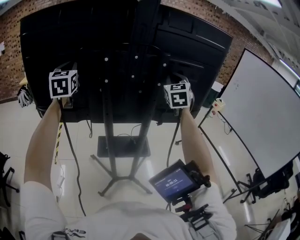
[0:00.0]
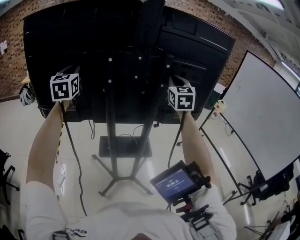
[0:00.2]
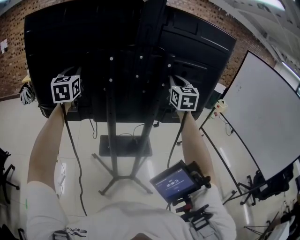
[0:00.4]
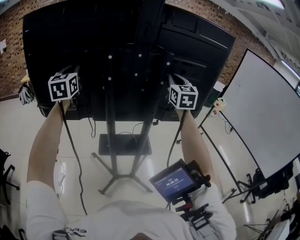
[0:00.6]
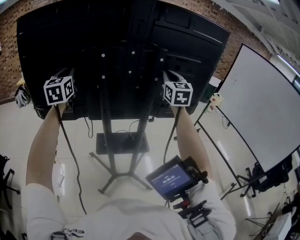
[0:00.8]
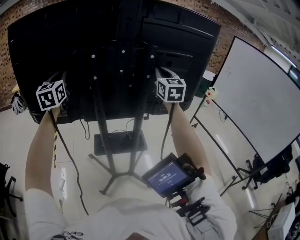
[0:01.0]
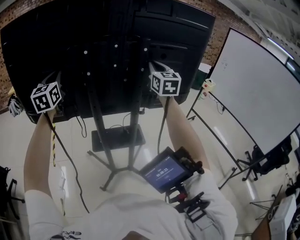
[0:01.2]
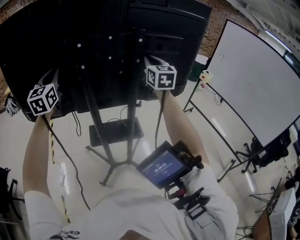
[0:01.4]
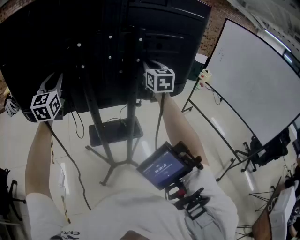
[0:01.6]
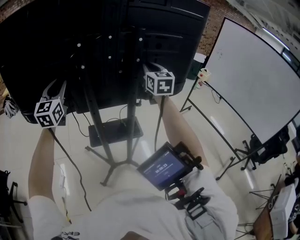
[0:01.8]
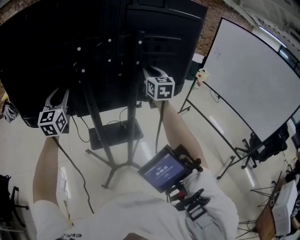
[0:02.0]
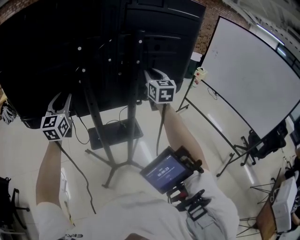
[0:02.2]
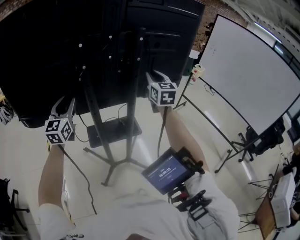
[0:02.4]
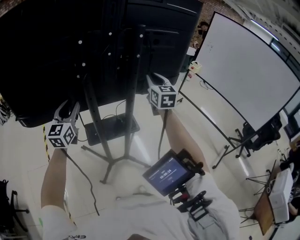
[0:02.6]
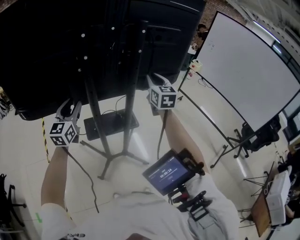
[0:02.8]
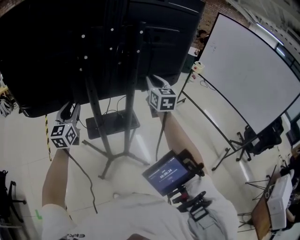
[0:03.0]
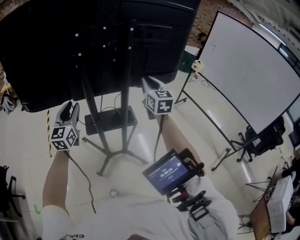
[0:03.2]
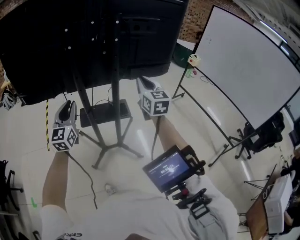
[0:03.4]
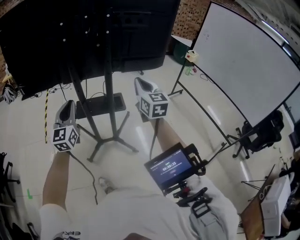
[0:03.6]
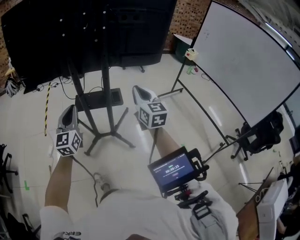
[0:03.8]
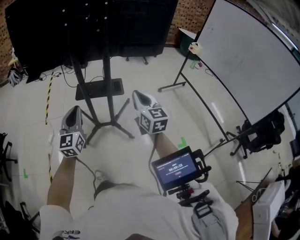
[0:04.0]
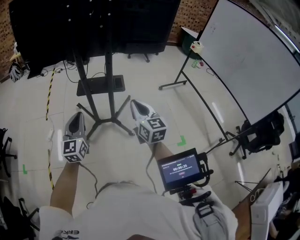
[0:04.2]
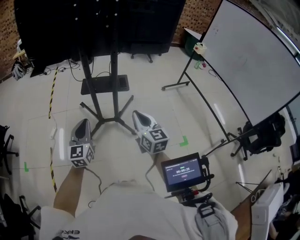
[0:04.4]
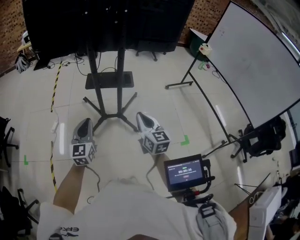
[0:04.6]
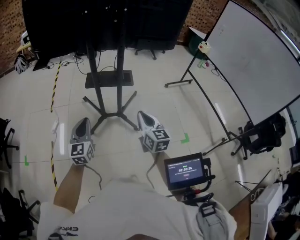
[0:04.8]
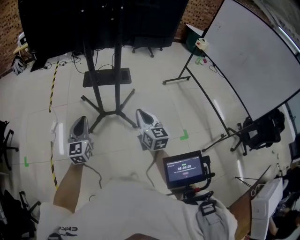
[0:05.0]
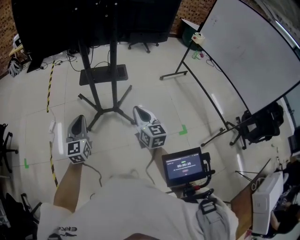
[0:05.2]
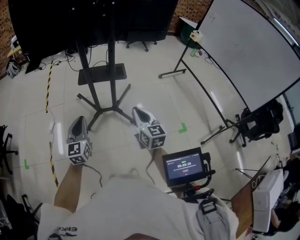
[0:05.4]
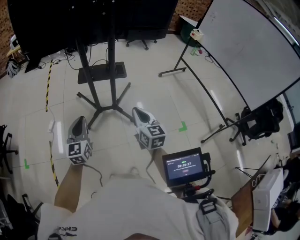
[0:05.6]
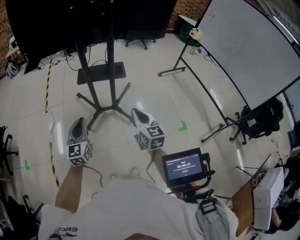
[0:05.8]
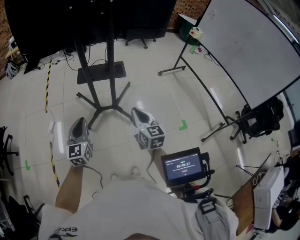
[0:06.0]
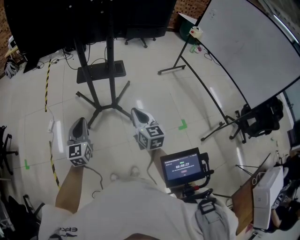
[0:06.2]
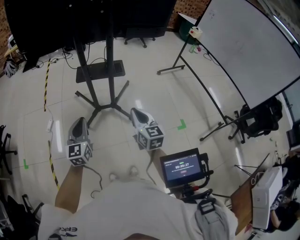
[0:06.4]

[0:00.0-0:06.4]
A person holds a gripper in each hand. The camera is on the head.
0.0 to 1.6 s: The two grippers go roughly 5 cm downward. The right gripper changes its angle by approximately 20 degrees.
1.6 to 3.2 s: The right gripper moves backward and downward, about 15 cm. The left gripper is displaced downward, backward and to the right by roughly 20 cm.
3.2 to 4.8 s: The two grippers go about 40 cm backward and downward. The right gripper rotates approximately 20 degrees; the left gripper closes up.
4.8 to 6.4 s: The grippers move only a little.

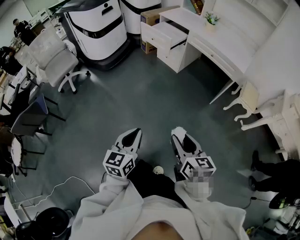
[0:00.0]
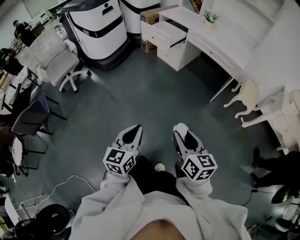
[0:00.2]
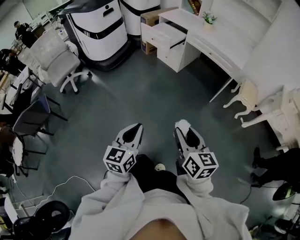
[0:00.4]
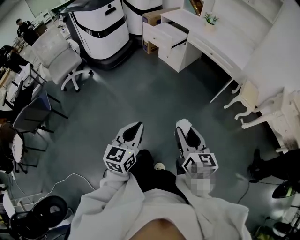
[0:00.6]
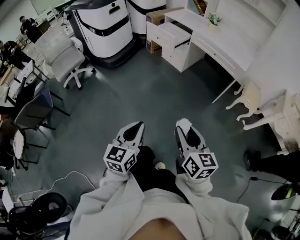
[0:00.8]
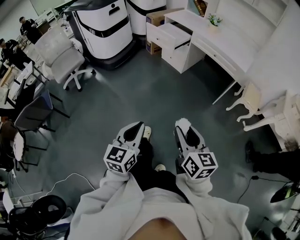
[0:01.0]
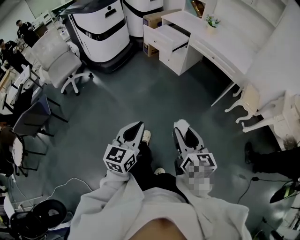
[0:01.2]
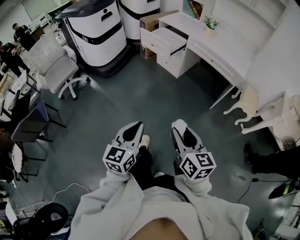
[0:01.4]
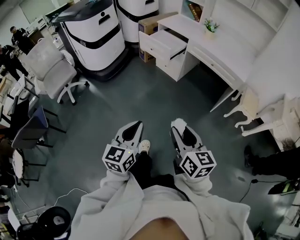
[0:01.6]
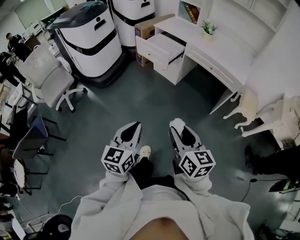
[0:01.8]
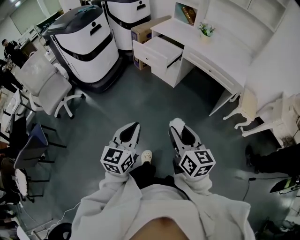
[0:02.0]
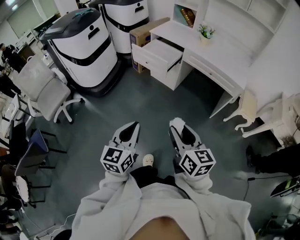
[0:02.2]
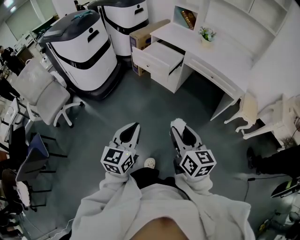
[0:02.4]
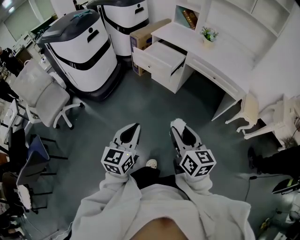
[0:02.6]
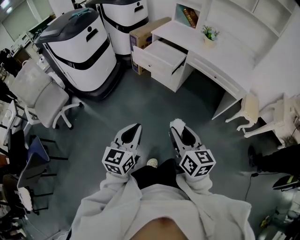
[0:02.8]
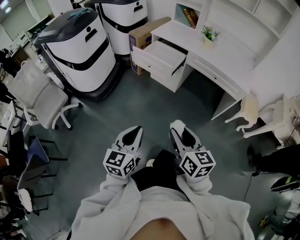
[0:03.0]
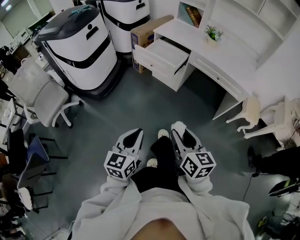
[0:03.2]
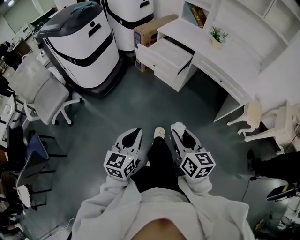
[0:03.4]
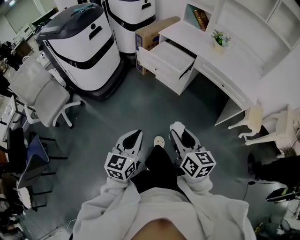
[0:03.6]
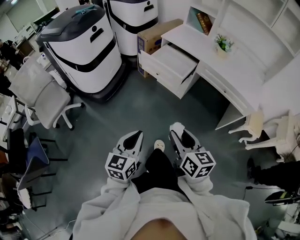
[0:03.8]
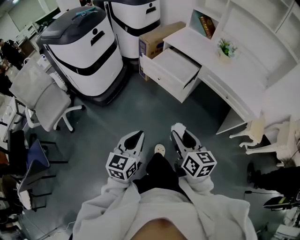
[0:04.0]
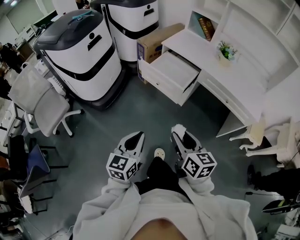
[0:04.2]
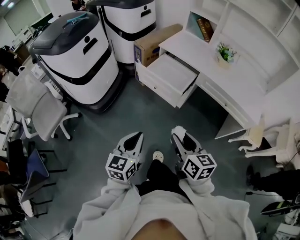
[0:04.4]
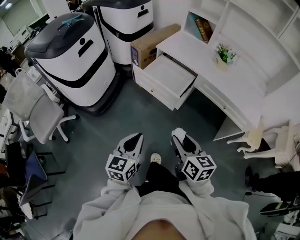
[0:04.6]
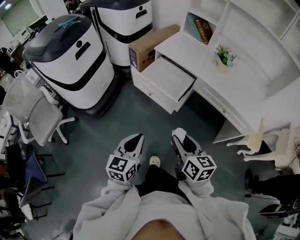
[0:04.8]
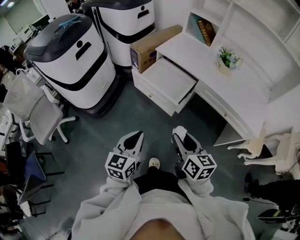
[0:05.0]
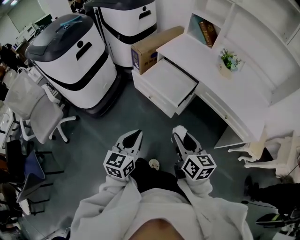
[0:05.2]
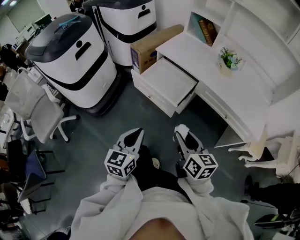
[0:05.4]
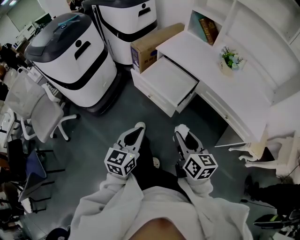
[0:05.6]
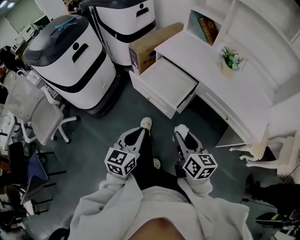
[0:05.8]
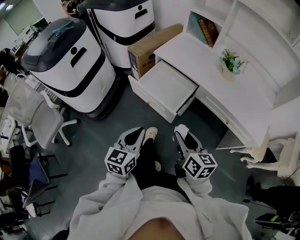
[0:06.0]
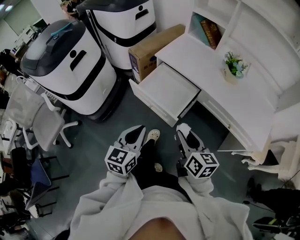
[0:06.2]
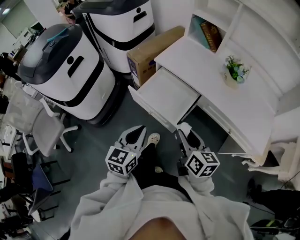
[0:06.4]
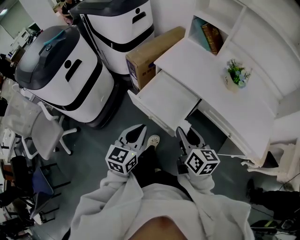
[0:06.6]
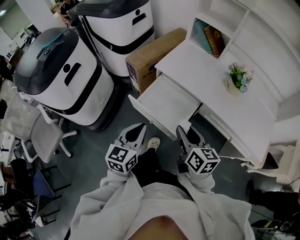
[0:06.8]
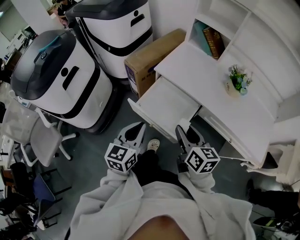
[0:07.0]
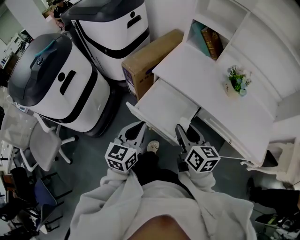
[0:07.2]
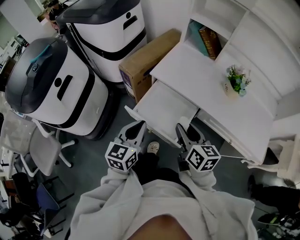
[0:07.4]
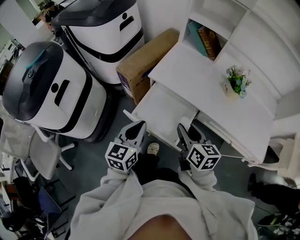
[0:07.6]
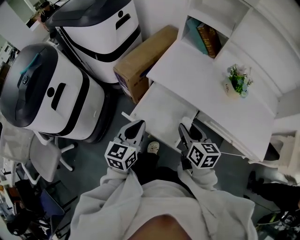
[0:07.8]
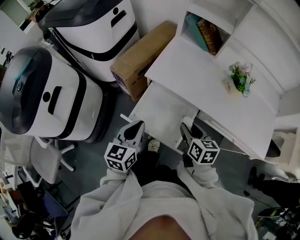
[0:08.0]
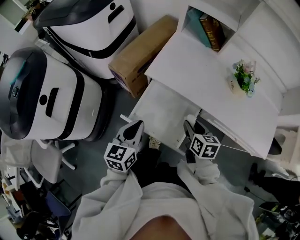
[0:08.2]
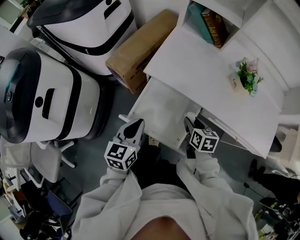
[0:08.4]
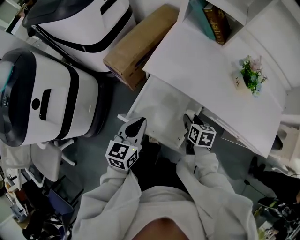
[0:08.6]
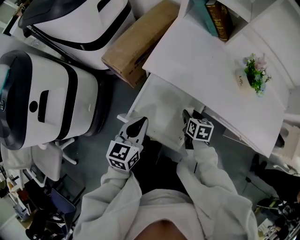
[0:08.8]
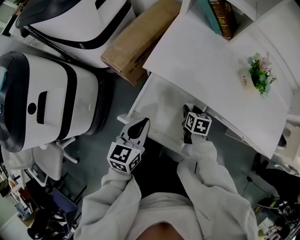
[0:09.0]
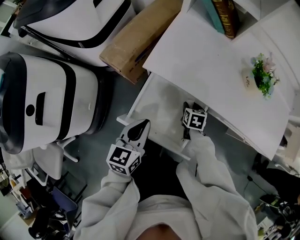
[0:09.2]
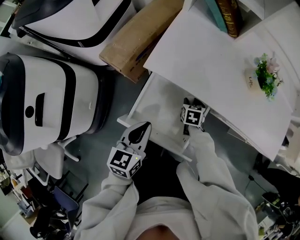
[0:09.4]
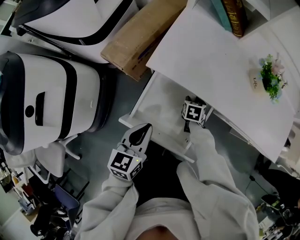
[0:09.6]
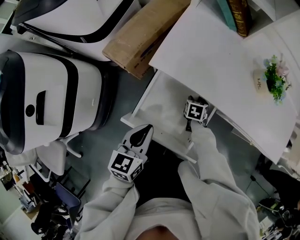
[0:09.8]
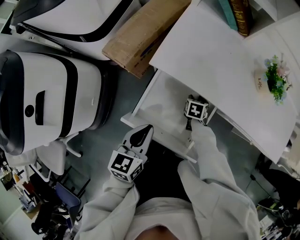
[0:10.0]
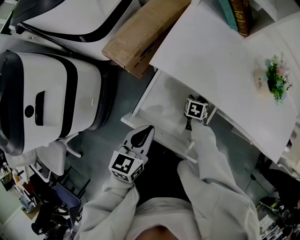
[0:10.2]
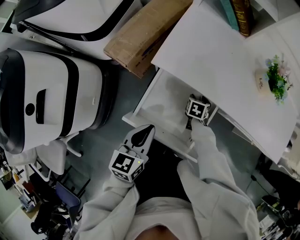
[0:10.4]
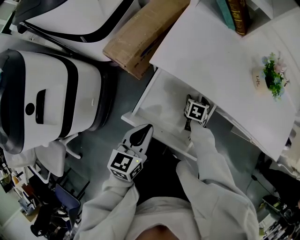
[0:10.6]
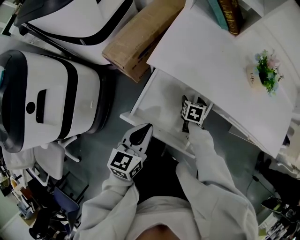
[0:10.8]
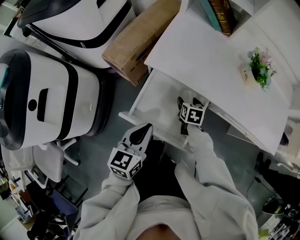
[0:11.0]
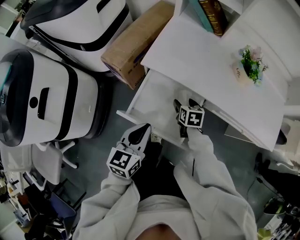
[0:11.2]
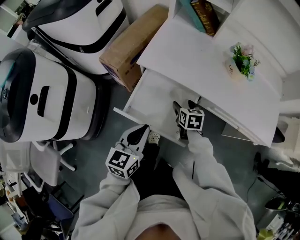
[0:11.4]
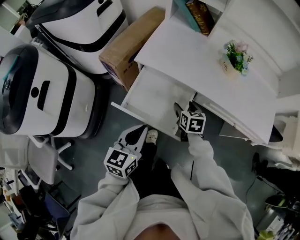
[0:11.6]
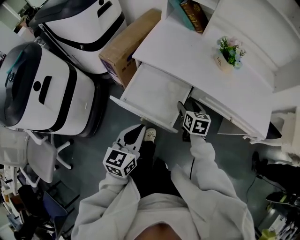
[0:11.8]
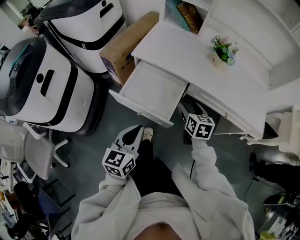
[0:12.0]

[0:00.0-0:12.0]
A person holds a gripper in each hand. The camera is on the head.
0.0 to 1.6 s: The two grippers go about 10 cm forward.
1.6 to 3.0 s: The grippers both shift forward and to the left by roughly 20 cm.
3.0 to 4.4 s: Both grippers travel together forward, about 20 cm.
4.4 to 6.0 s: The right gripper moves forward and to the right, about 15 cm; the left gripper moves forward, roughly 15 cm.
6.0 to 7.6 s: The two grippers go roughly 25 cm forward.
7.6 to 9.0 s: The right gripper travels downward and forward by approximately 30 cm, and tilts its fingers some 30 degrees downward, while the left gripper is displaced downward and forward by about 10 cm.
9.0 to 10.4 s: The right gripper is displaced downward by about 10 cm.
10.4 to 12.0 s: The right gripper moves upward and backward, some 30 cm, and swivels roughly 30 degrees. The left gripper shifts about 20 cm backward, to the right and upward.

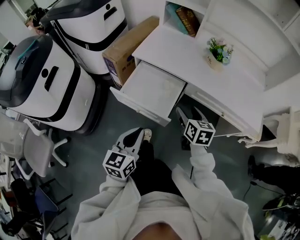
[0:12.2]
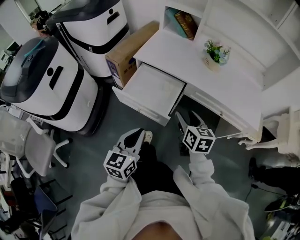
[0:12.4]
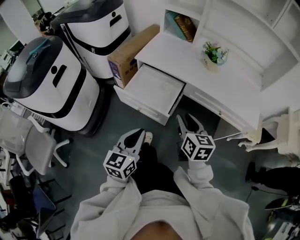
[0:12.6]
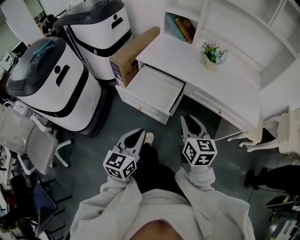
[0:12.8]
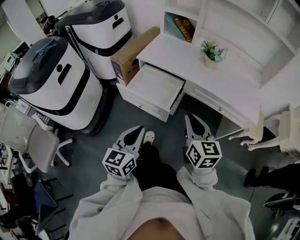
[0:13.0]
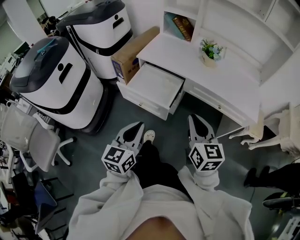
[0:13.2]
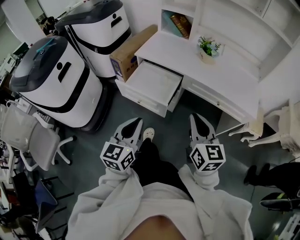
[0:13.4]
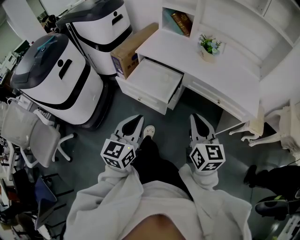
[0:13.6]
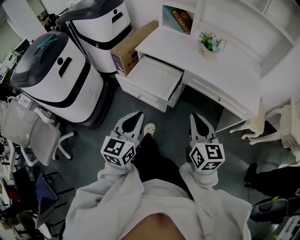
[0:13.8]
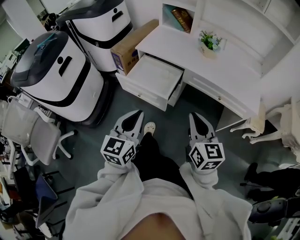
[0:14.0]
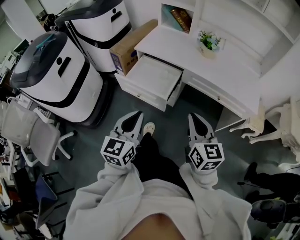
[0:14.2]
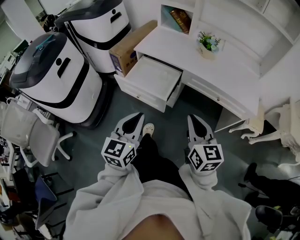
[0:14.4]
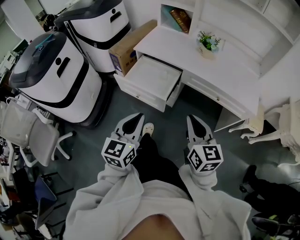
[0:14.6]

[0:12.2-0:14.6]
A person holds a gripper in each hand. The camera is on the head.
12.2 to 13.4 s: The right gripper moves backward and upward, approximately 25 cm, rotates roughly 20 degrees, and closes. Meanwhile the left gripper goes approximately 10 cm backward and upward.
13.4 to 14.6 s: The grippers make only small movements.

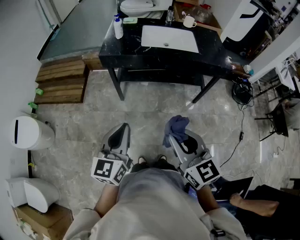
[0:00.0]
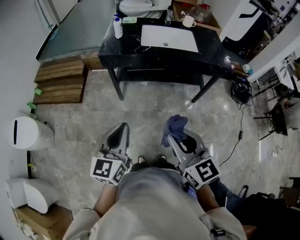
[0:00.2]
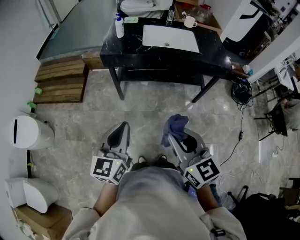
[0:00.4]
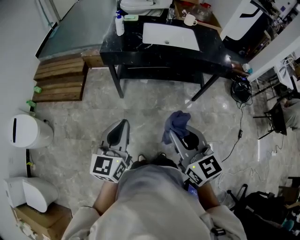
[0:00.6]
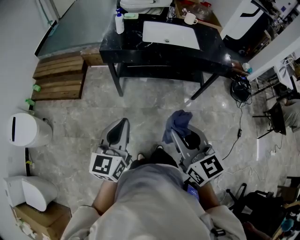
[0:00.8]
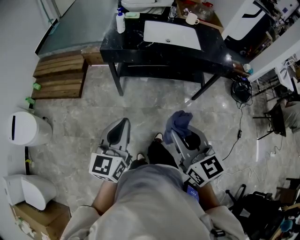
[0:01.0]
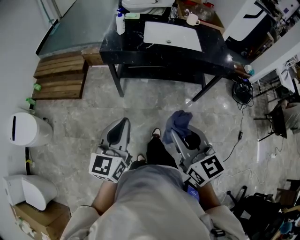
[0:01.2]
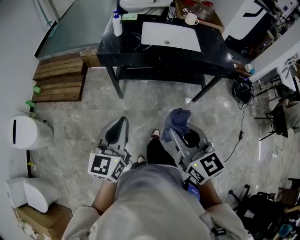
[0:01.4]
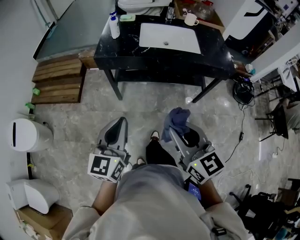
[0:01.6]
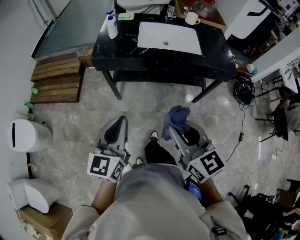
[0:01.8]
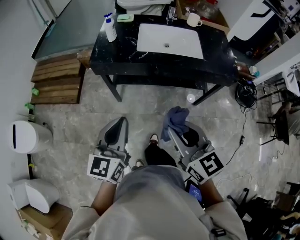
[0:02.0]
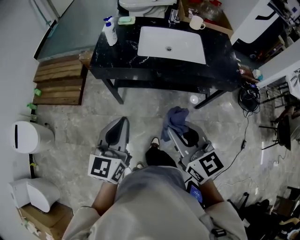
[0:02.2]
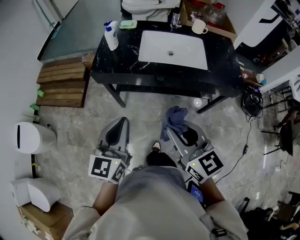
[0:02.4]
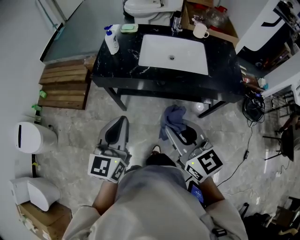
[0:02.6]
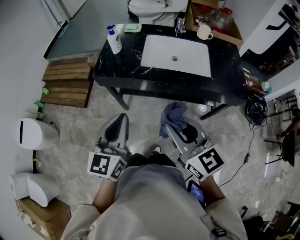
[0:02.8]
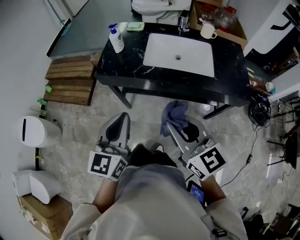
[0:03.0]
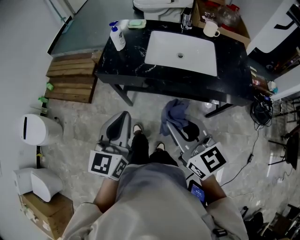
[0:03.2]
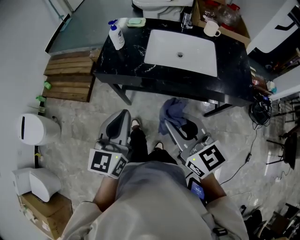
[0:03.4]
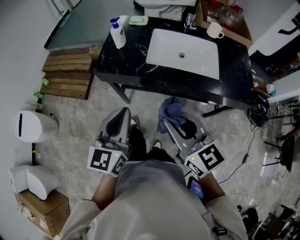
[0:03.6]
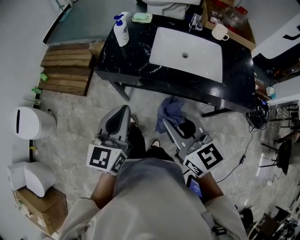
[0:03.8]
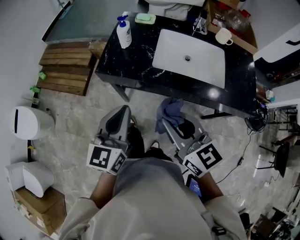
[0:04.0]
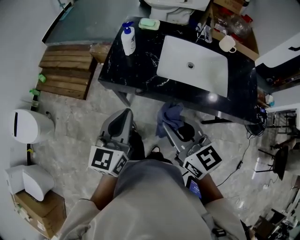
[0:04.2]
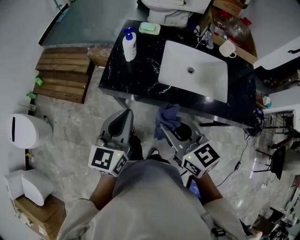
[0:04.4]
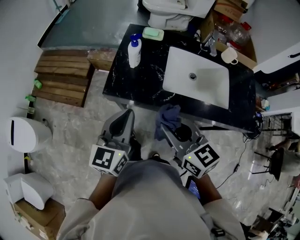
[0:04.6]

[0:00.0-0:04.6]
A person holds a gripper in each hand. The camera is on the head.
0.0 to 1.6 s: Both grippers travel together forward, some 10 cm.
1.6 to 3.0 s: Both grippers travel together forward and to the right, approximately 20 cm.
3.0 to 4.6 s: The right gripper travels forward and to the left by roughly 20 cm. Meanwhile the left gripper heads forward, covering approximately 20 cm.
